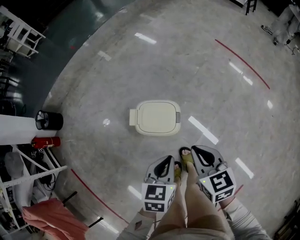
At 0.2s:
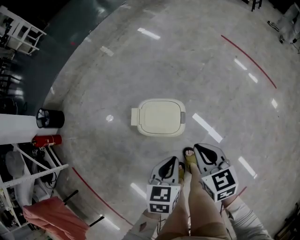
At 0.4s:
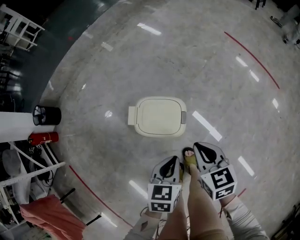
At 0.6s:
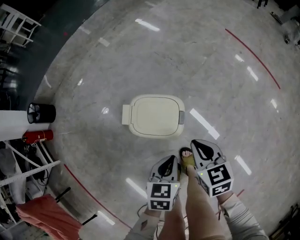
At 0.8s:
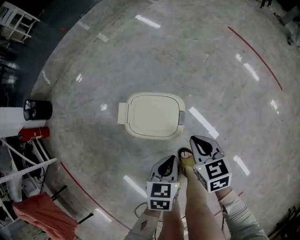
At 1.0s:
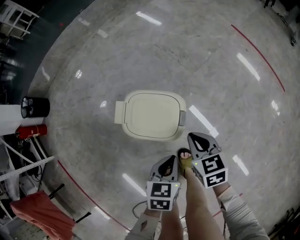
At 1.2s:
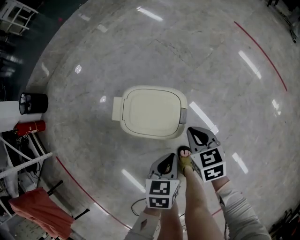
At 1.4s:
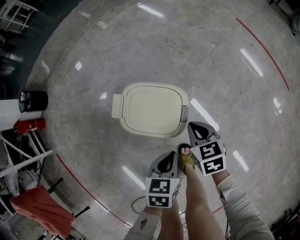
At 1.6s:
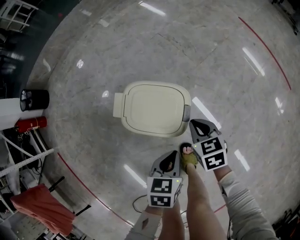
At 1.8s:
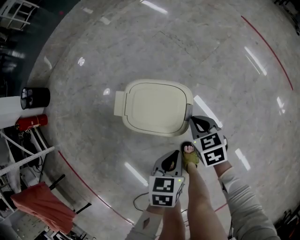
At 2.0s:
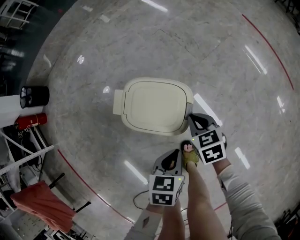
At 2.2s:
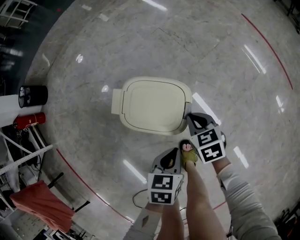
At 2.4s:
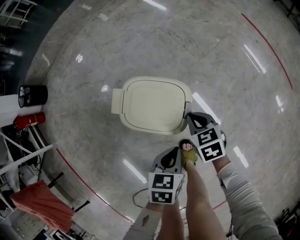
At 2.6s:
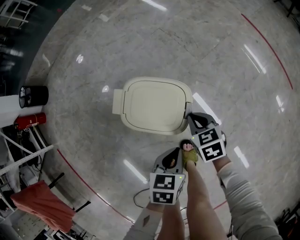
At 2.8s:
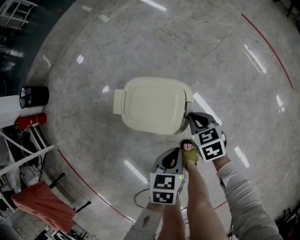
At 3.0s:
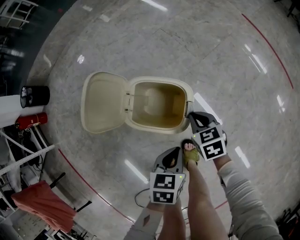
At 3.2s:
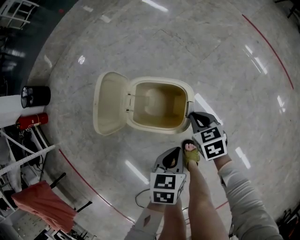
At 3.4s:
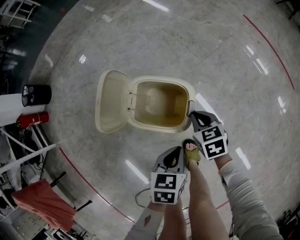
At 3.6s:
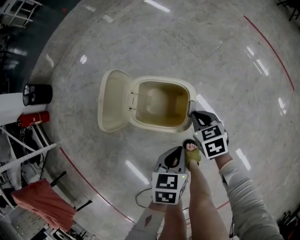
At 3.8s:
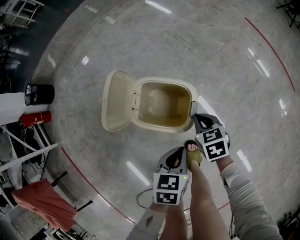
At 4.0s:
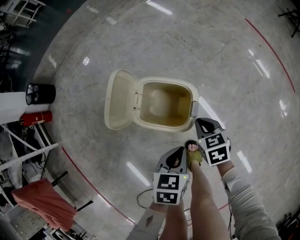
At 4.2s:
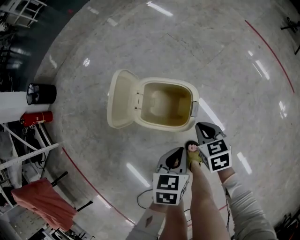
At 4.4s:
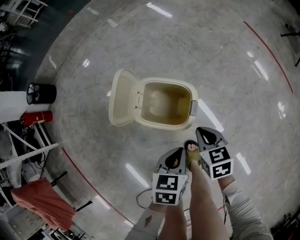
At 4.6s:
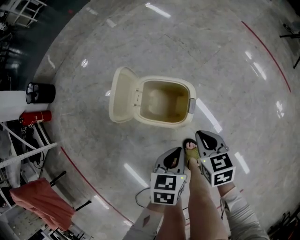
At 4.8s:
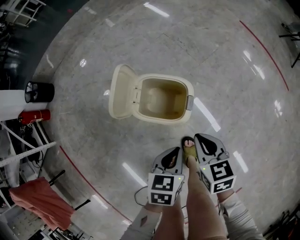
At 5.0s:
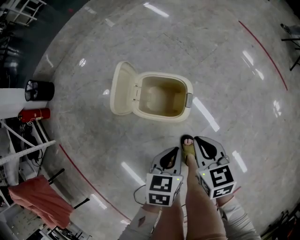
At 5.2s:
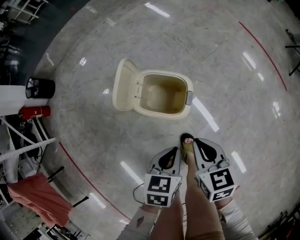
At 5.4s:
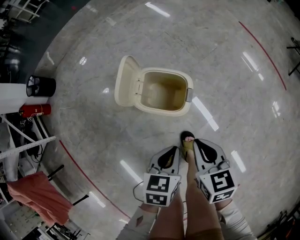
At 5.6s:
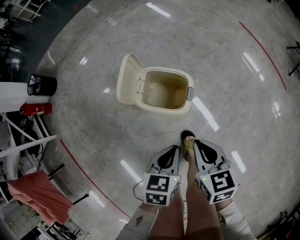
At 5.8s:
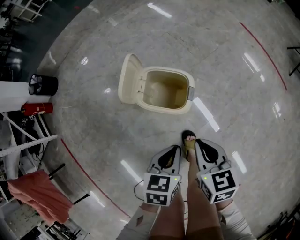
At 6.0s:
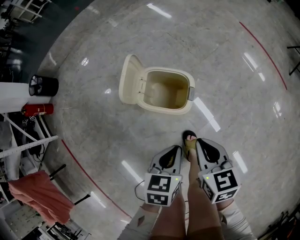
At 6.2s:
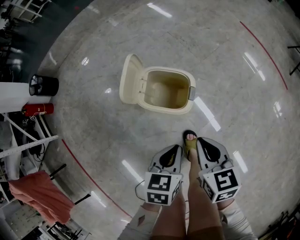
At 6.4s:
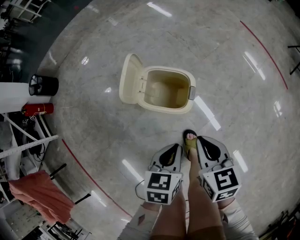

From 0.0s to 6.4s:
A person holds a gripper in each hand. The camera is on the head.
From 0.0s to 1.6s: Both grippers travel together downward, approximately 25 cm.
From 1.6s to 3.2s: The grippers stay close to where they were, moving slightly.
From 3.2s to 4.8s: The left gripper moves upward, some 5 cm. Meanwhile the right gripper goes about 15 cm upward and backward.
From 4.8s to 6.4s: The left gripper moves about 5 cm, while the right gripper is displaced upward by roughly 5 cm.

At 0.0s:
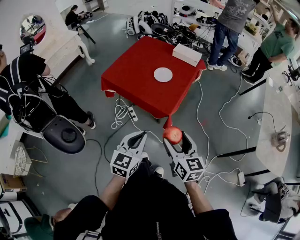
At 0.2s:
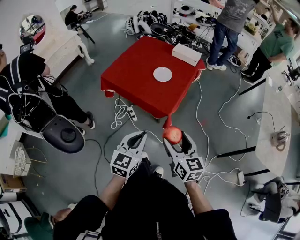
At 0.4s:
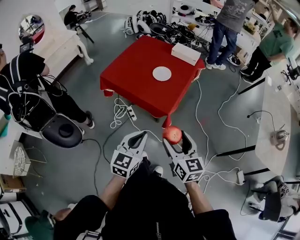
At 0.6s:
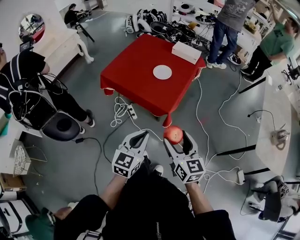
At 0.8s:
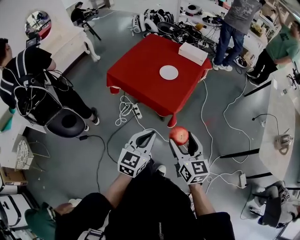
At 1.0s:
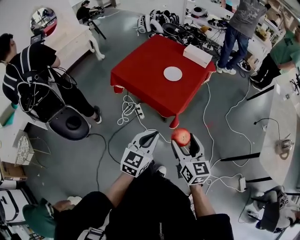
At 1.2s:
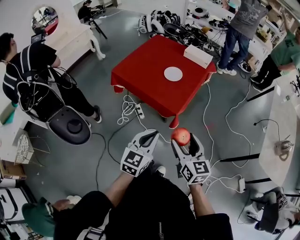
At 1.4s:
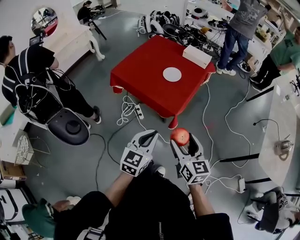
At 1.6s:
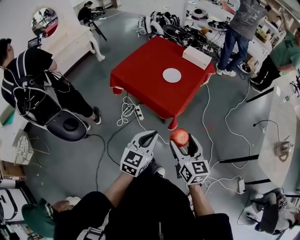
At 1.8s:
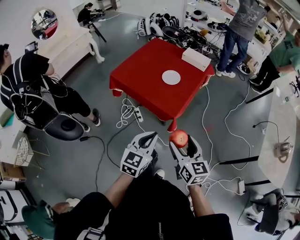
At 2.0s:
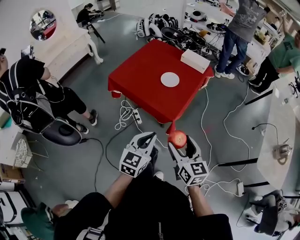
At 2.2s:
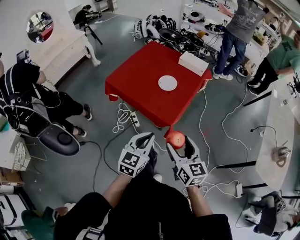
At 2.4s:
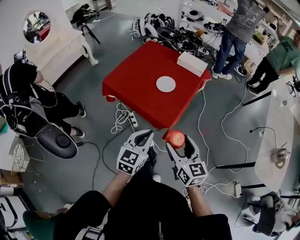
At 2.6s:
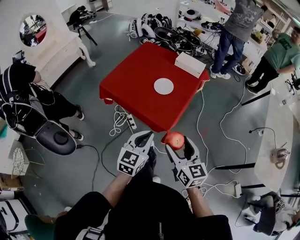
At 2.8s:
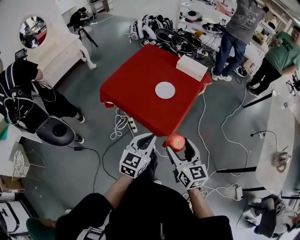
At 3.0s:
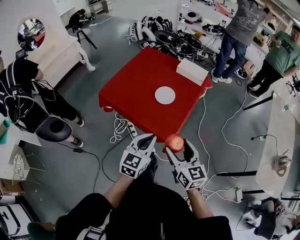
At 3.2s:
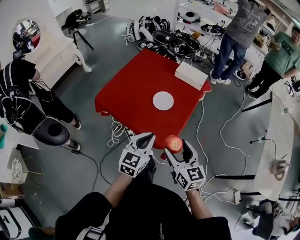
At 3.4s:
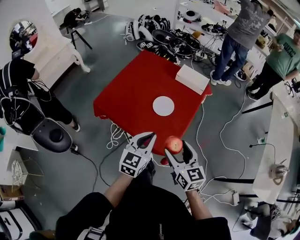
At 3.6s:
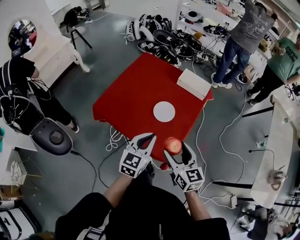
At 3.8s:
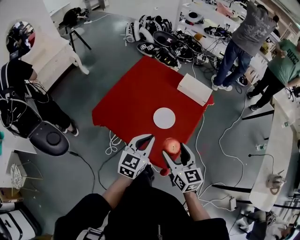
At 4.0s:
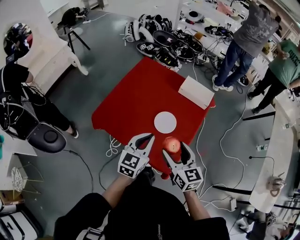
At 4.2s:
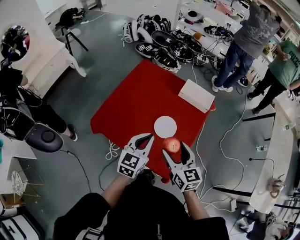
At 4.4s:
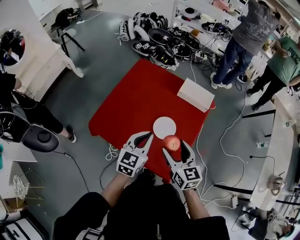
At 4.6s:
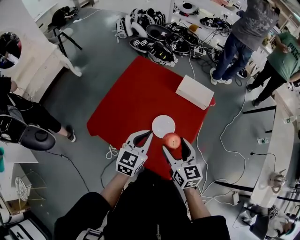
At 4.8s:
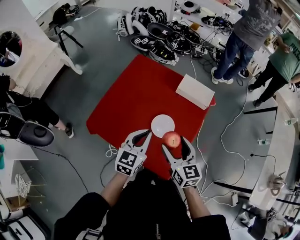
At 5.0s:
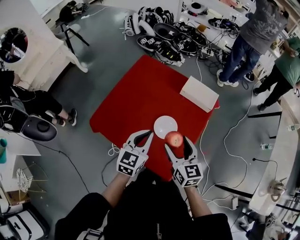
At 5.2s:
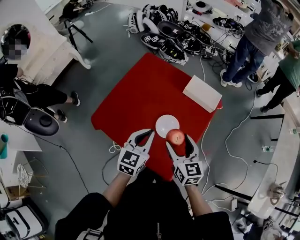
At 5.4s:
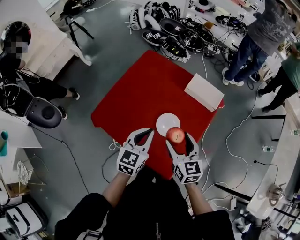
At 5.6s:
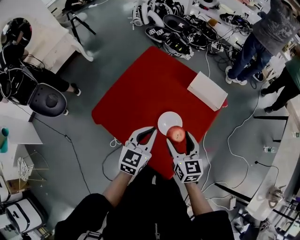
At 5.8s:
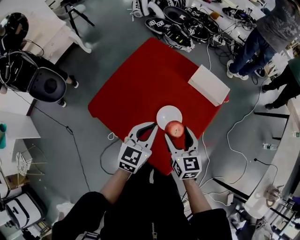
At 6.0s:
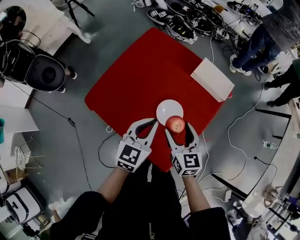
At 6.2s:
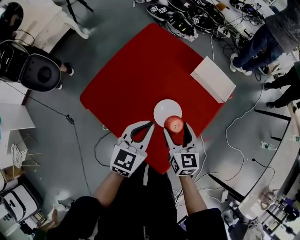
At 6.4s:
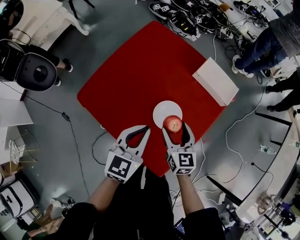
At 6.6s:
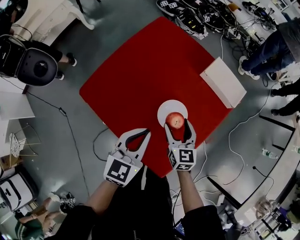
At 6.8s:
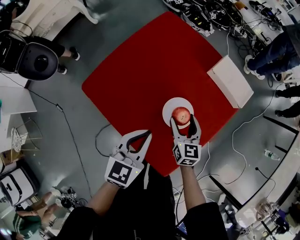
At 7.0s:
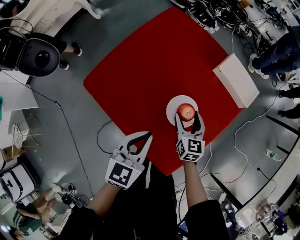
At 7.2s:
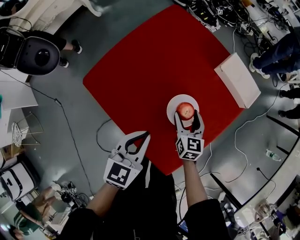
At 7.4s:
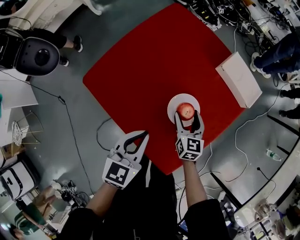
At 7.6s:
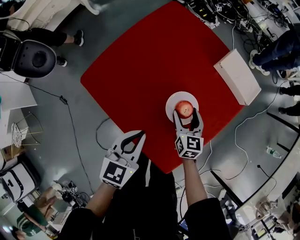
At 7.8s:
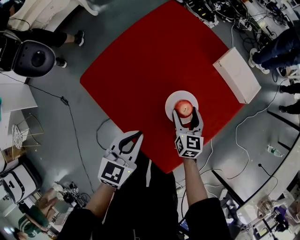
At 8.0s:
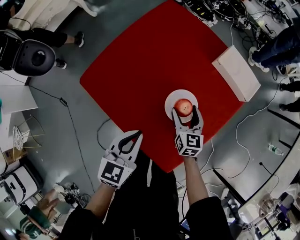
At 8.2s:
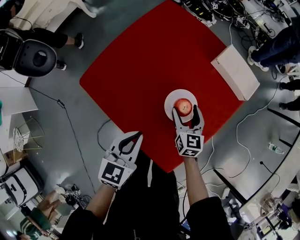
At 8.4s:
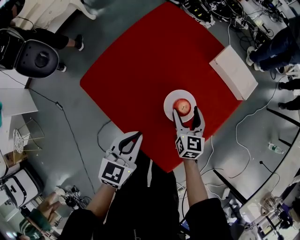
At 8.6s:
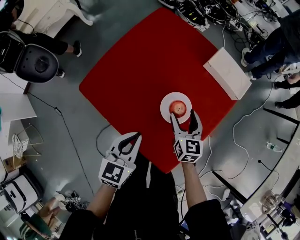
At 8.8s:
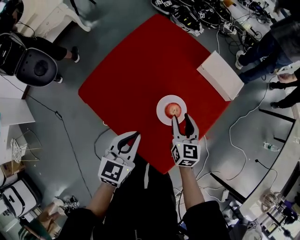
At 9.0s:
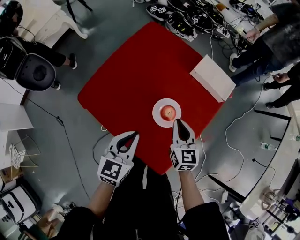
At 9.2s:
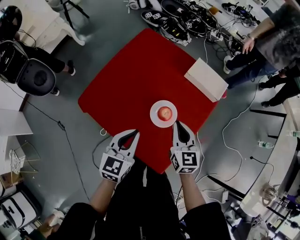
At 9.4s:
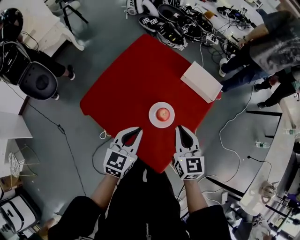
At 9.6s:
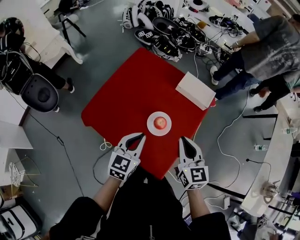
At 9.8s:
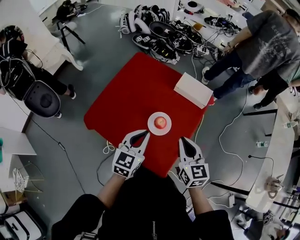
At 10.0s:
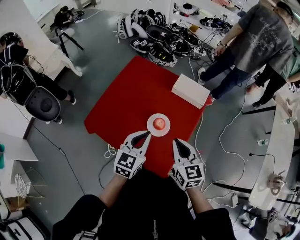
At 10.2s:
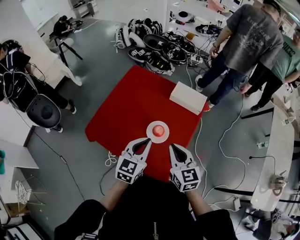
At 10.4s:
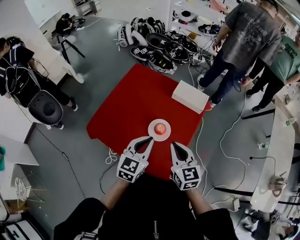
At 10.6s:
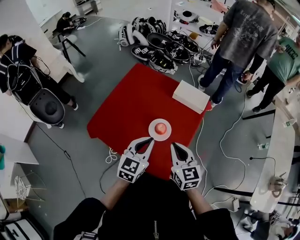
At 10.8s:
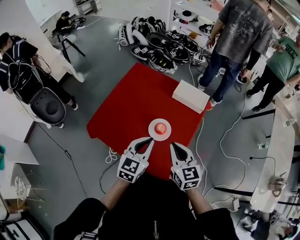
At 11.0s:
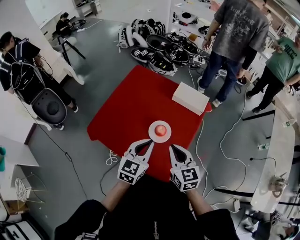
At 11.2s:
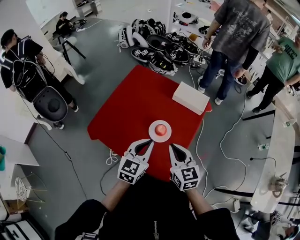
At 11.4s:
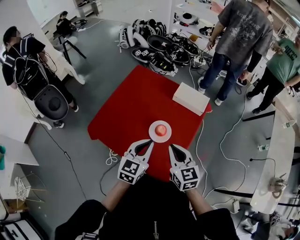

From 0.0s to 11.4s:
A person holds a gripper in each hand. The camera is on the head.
From 0.0s to 1.4s: The grippers stay close to where they were, moving slightly.
From 1.4s to 2.8s: The two grippers go roughly 15 cm forward.
From 2.8s to 4.2s: The grippers both shift forward by roughly 30 cm.
From 4.2s to 5.6s: The grippers both shift forward by approximately 10 cm.
From 5.6s to 7.2s: The right gripper travels downward by approximately 20 cm. Meanwhile the left gripper travels downward by approximately 10 cm.
From 7.2s to 8.6s: There are only small adjustments of the grippers.
From 8.6s to 10.0s: The left gripper shifts approximately 15 cm upward and to the right; the right gripper shifts some 25 cm upward and backward, and closes.
From 10.0s to 11.4s: The grippers move only a little.

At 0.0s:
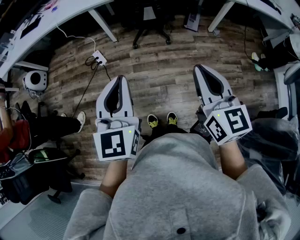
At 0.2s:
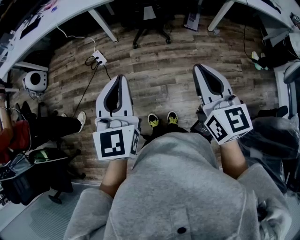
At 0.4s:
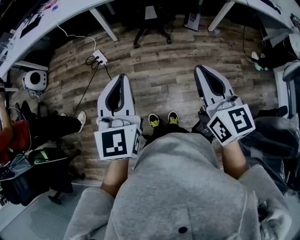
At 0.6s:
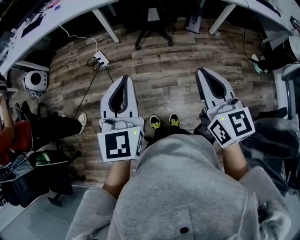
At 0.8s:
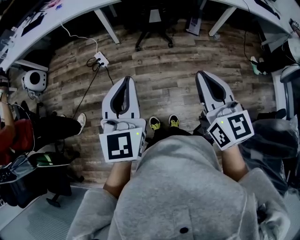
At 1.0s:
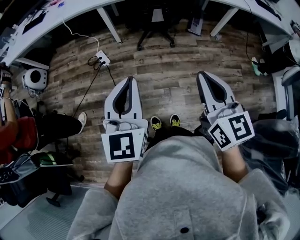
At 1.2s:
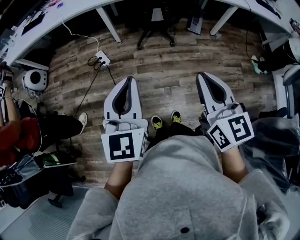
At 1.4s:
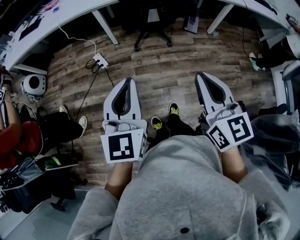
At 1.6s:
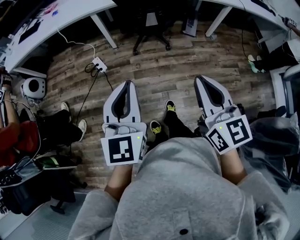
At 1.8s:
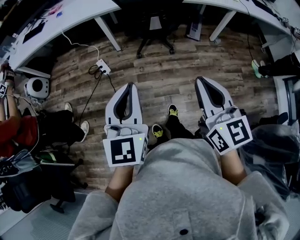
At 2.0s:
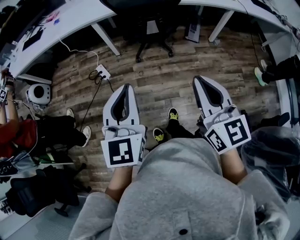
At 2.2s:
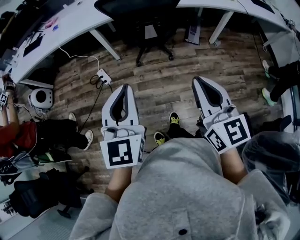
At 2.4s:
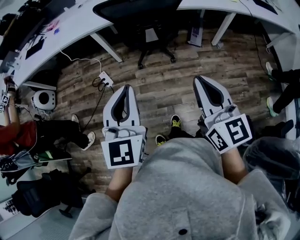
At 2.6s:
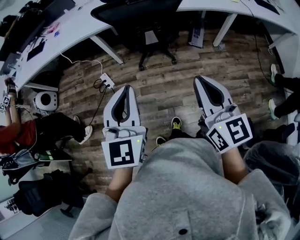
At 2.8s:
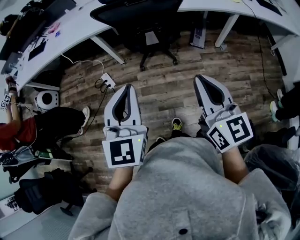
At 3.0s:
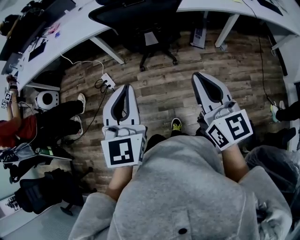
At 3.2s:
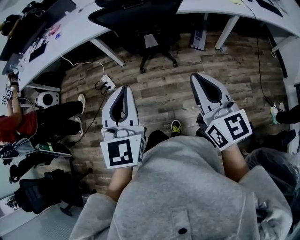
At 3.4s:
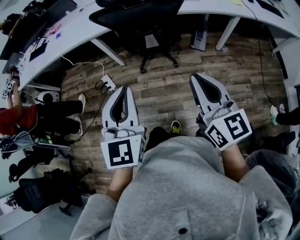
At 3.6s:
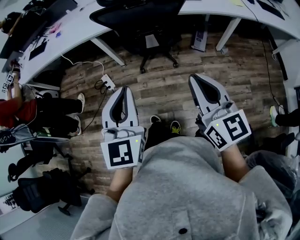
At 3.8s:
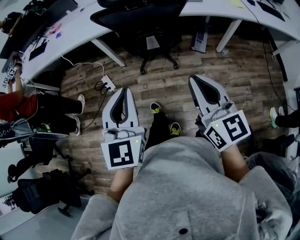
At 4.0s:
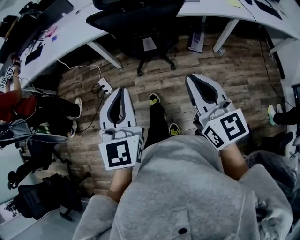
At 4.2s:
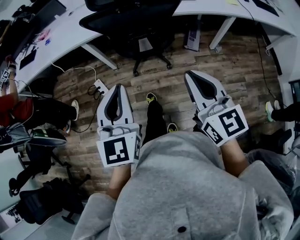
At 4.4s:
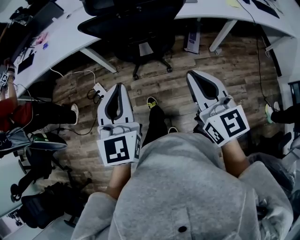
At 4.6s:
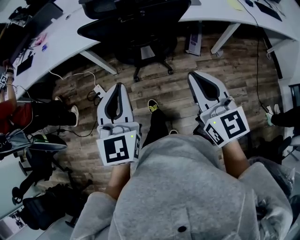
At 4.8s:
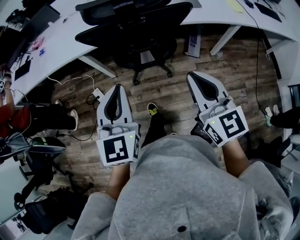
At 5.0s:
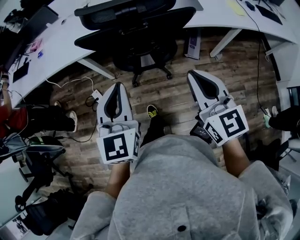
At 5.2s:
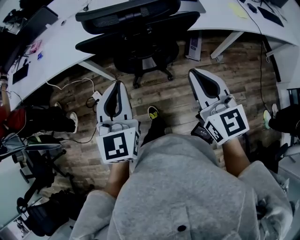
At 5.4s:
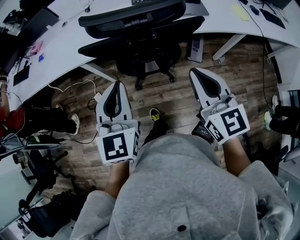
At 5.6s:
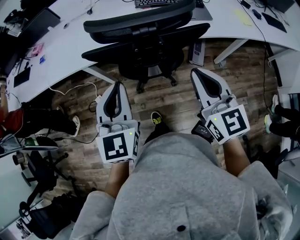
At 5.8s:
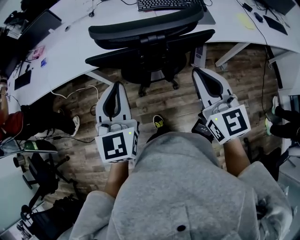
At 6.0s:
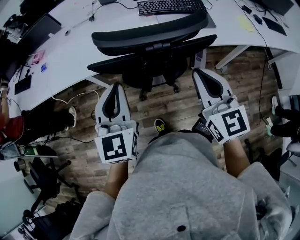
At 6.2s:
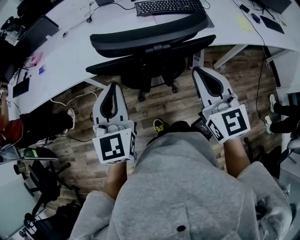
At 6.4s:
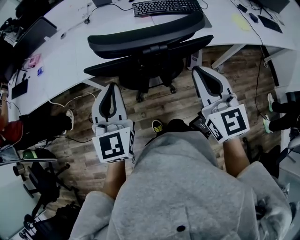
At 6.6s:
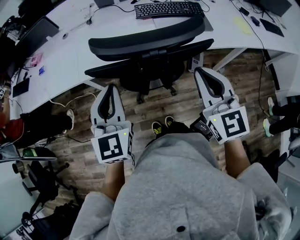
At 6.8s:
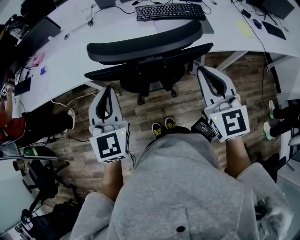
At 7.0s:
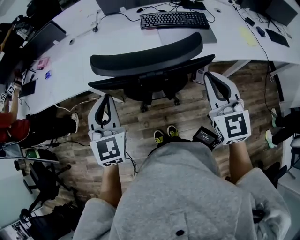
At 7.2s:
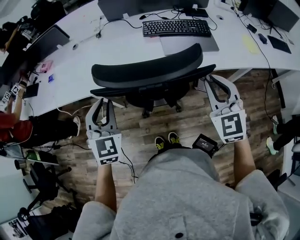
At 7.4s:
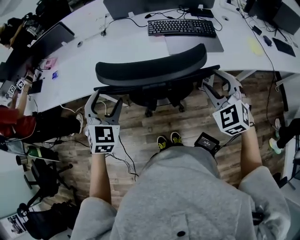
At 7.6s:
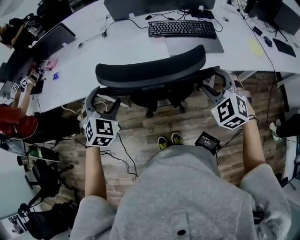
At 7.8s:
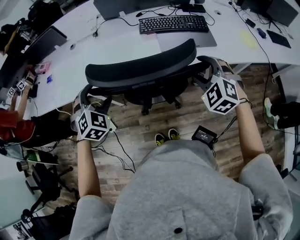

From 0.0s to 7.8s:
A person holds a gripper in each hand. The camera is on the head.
From 0.0s to 1.6s: The right gripper heads to the left, covering about 5 cm.
From 1.6s to 3.2s: Both grippers move forward and to the right, roughly 20 cm.
From 3.2s to 4.6s: The grippers both shift forward by about 15 cm.
From 4.6s to 6.2s: Both grippers travel together forward, about 20 cm.
From 6.2s to 7.8s: The right gripper heads forward, downward and to the right, covering approximately 15 cm, rolls counterclockwise, seen from behind, by some 50 degrees, and opens. The left gripper heads forward and downward, covering roughly 15 cm, rolls clockwise, seen from behind, by approximately 40 degrees, and opens up.
